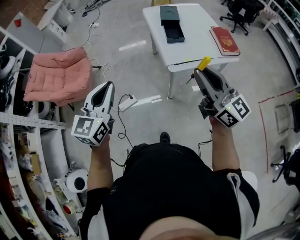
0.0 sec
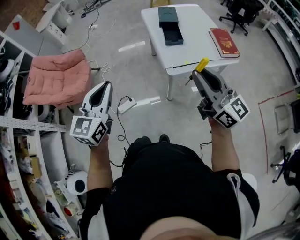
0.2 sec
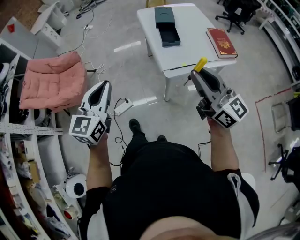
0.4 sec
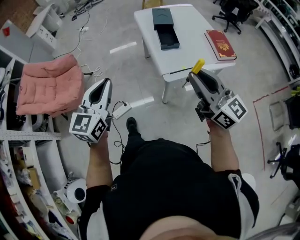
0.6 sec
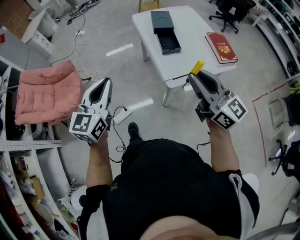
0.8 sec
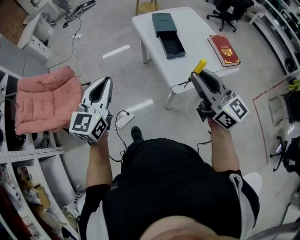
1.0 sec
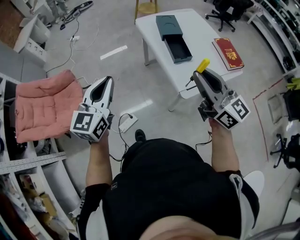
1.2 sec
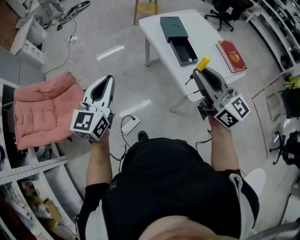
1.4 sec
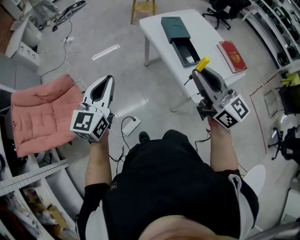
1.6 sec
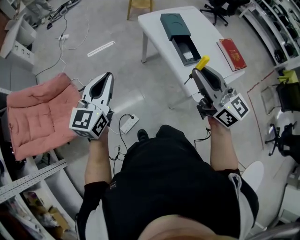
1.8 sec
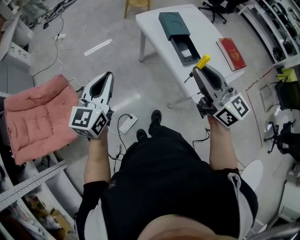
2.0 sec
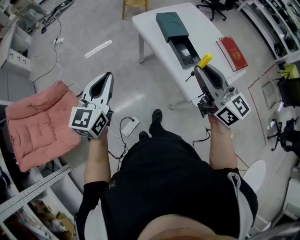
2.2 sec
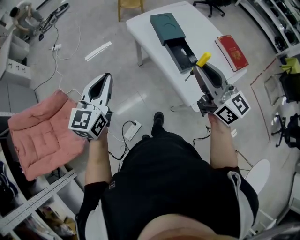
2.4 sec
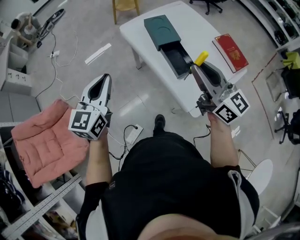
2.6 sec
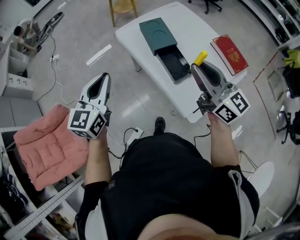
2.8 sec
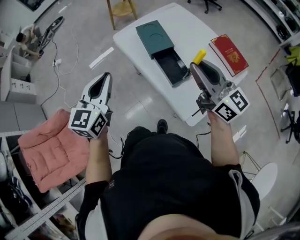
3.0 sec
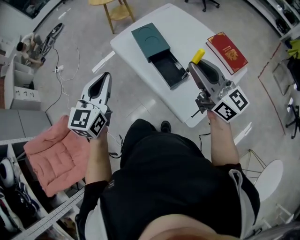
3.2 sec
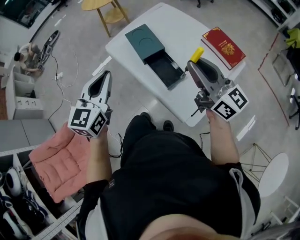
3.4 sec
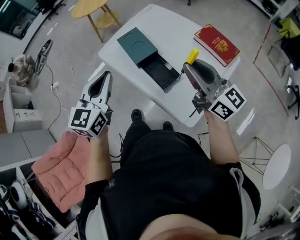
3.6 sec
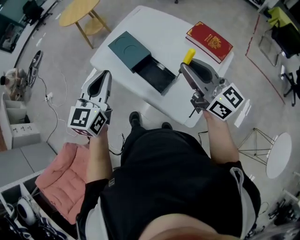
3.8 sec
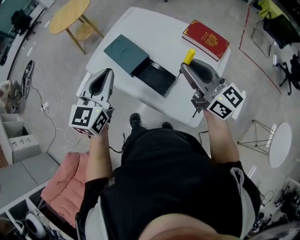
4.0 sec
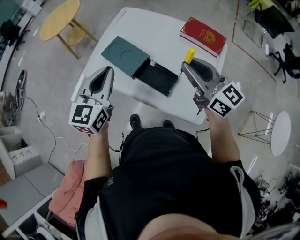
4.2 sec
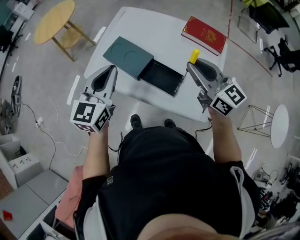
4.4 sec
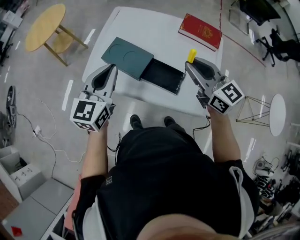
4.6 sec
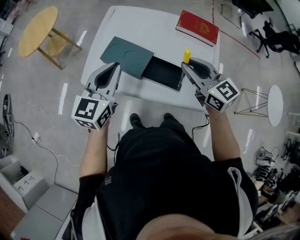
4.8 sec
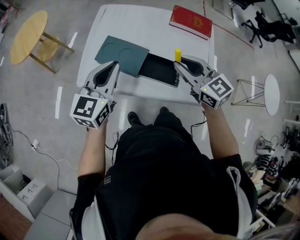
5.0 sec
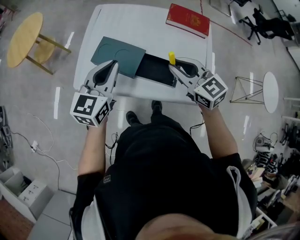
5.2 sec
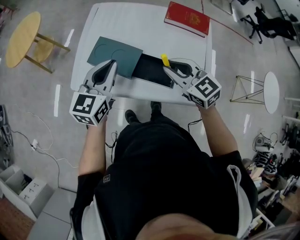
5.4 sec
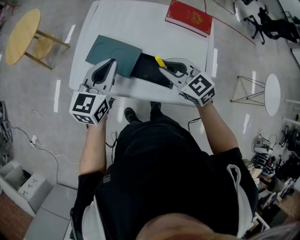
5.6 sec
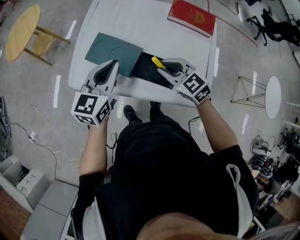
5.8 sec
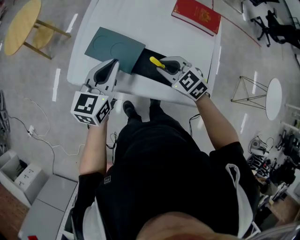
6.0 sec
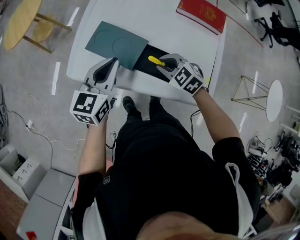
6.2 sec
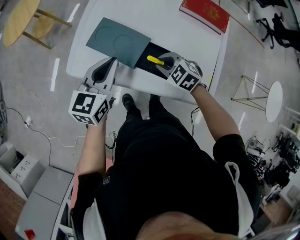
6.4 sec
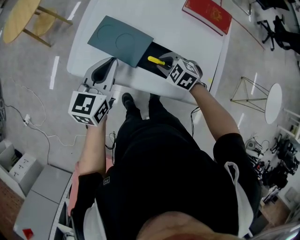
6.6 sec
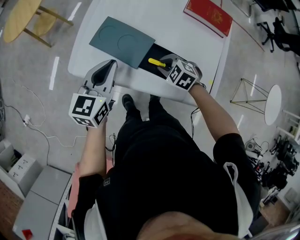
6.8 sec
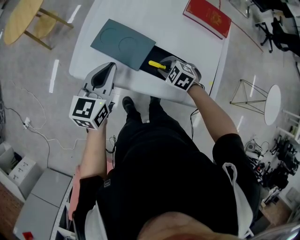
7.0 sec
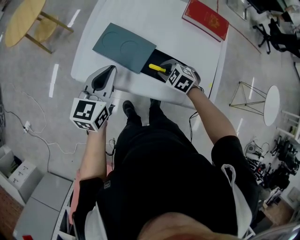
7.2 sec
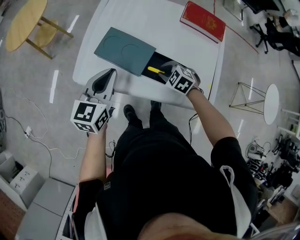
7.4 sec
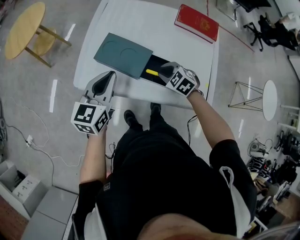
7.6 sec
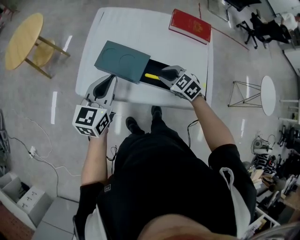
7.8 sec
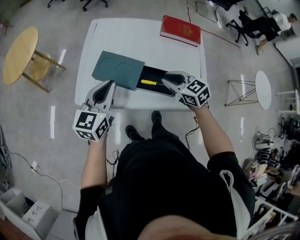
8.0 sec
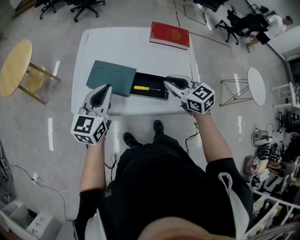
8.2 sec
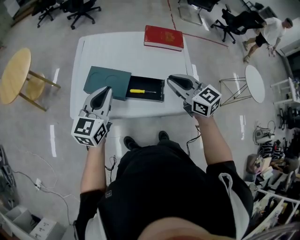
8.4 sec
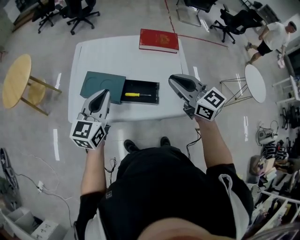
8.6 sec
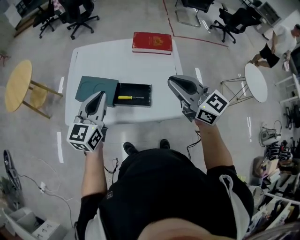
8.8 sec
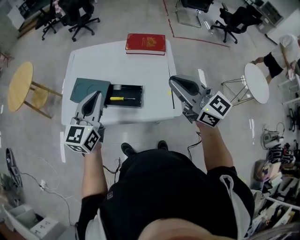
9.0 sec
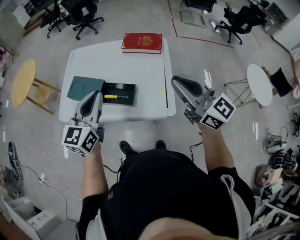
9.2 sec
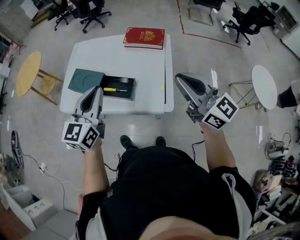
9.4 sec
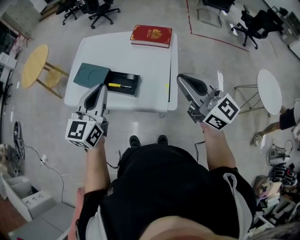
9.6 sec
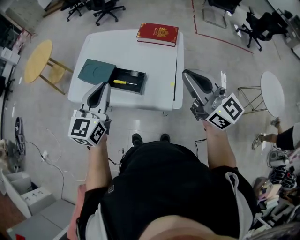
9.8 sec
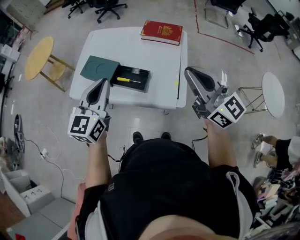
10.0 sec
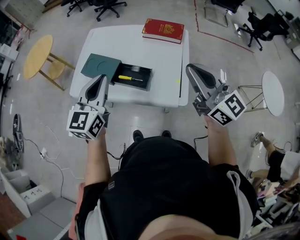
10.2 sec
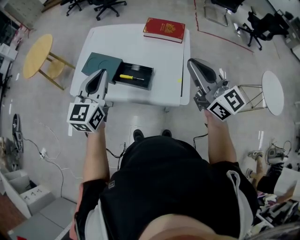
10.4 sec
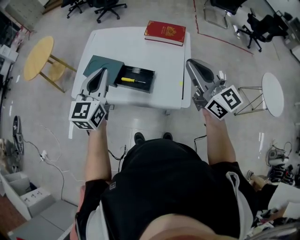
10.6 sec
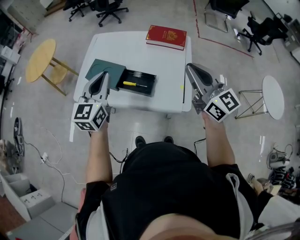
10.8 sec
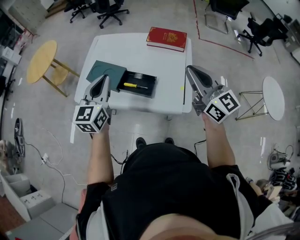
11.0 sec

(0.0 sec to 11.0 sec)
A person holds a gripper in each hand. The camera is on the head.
0.0 sec - 1.6 sec: Both grippers travel together forward and to the left, approximately 40 cm.
1.6 sec - 3.2 sec: Both grippers travel together forward and to the right, about 30 cm.
3.2 sec - 4.8 sec: The right gripper ends up about 15 cm from where it was, and changes its angle by some 40 degrees; the left gripper moves some 25 cm, and swivels about 40 degrees.
4.8 sec - 6.2 sec: The left gripper moves downward, roughly 10 cm; the right gripper is displaced downward by some 20 cm, and tips its fingers downward by some 30 degrees.
6.2 sec - 7.8 sec: The left gripper goes some 5 cm to the left. Meanwhile the right gripper travels downward and back again, about 5 cm each way.
7.8 sec - 9.4 sec: Both grippers move to the right, upward and backward, approximately 40 cm. The right gripper points its fingers some 60 degrees further upward.
9.4 sec - 11.0 sec: The right gripper moves to the left and forward, approximately 10 cm. Meanwhile the left gripper is displaced to the left by about 10 cm.

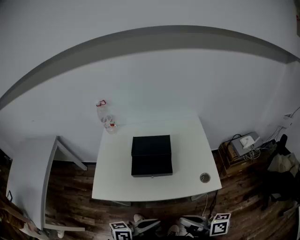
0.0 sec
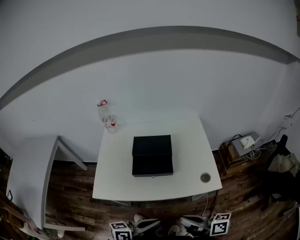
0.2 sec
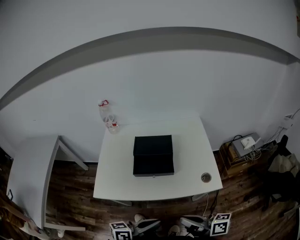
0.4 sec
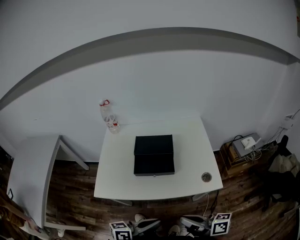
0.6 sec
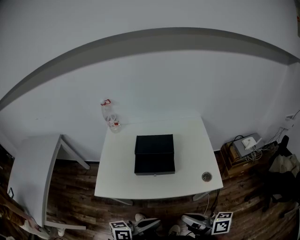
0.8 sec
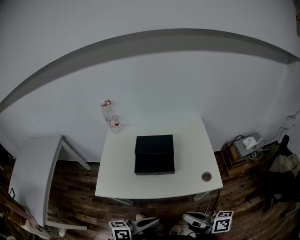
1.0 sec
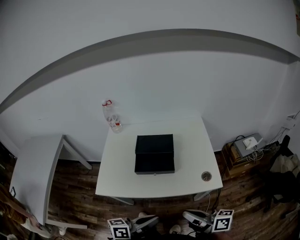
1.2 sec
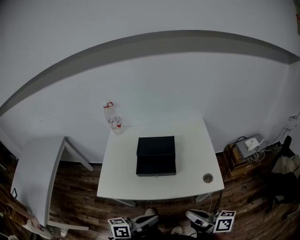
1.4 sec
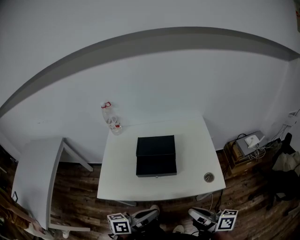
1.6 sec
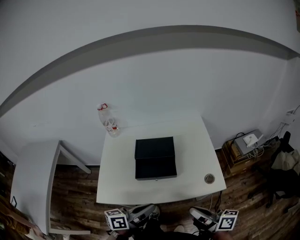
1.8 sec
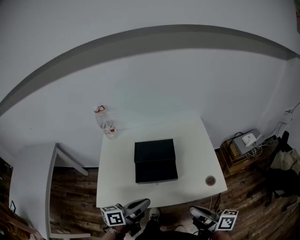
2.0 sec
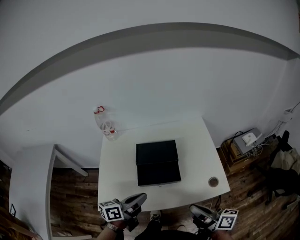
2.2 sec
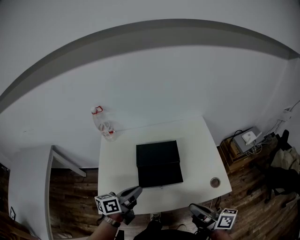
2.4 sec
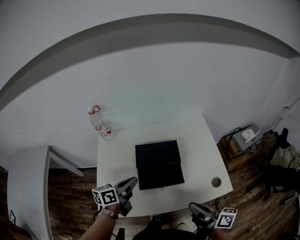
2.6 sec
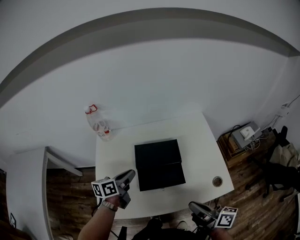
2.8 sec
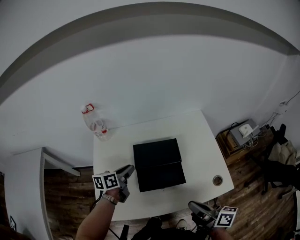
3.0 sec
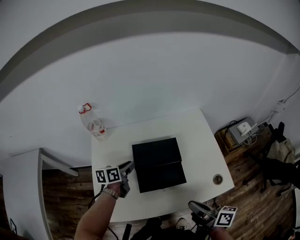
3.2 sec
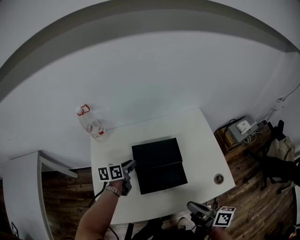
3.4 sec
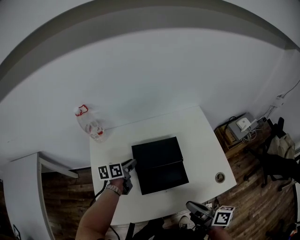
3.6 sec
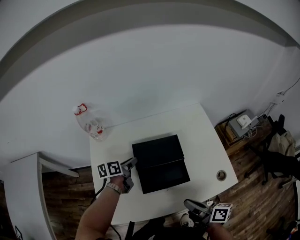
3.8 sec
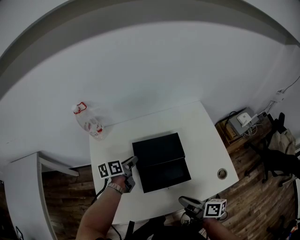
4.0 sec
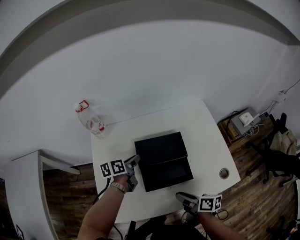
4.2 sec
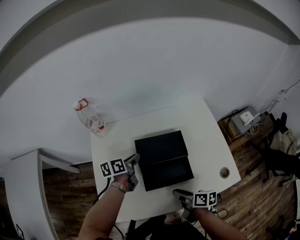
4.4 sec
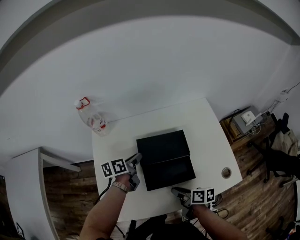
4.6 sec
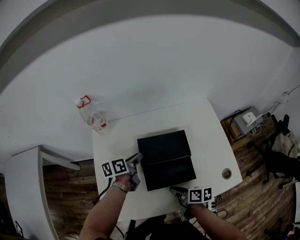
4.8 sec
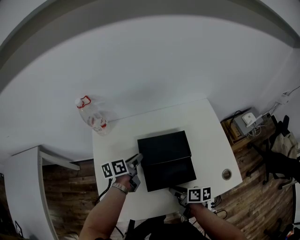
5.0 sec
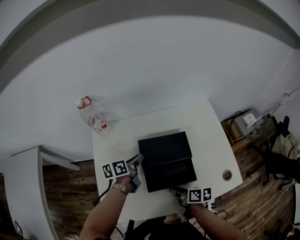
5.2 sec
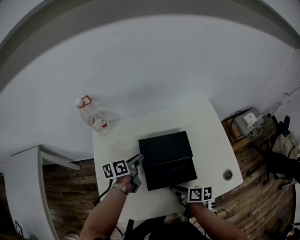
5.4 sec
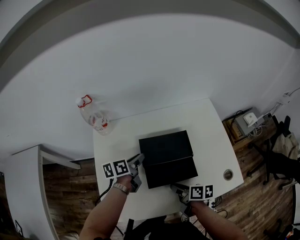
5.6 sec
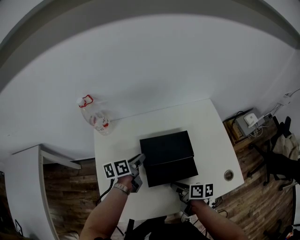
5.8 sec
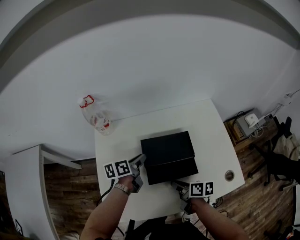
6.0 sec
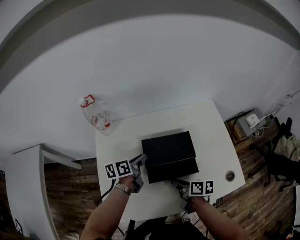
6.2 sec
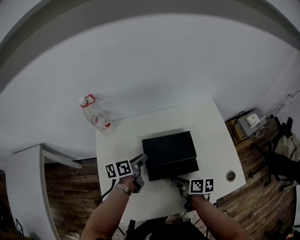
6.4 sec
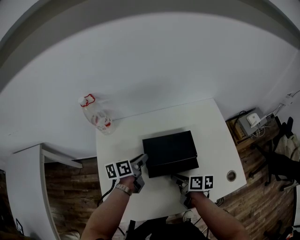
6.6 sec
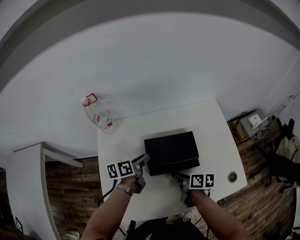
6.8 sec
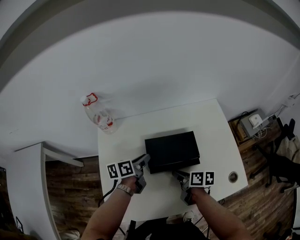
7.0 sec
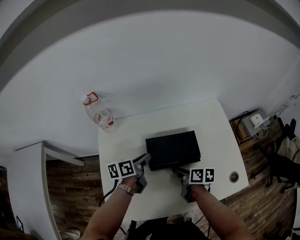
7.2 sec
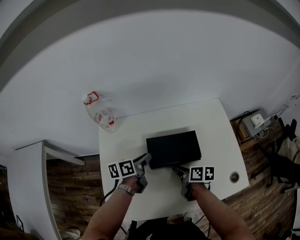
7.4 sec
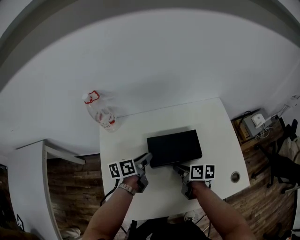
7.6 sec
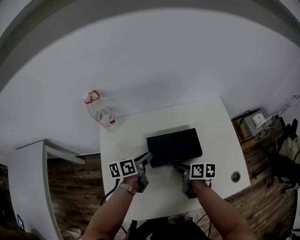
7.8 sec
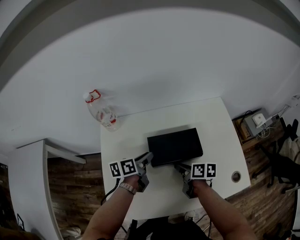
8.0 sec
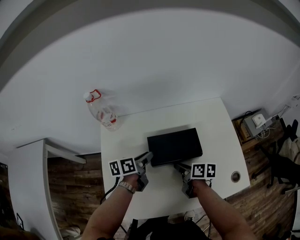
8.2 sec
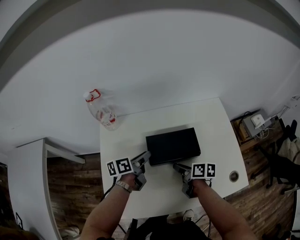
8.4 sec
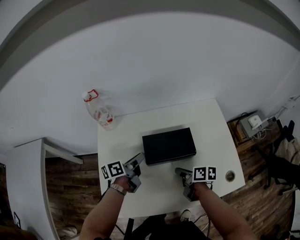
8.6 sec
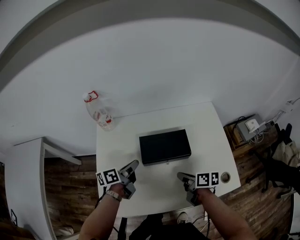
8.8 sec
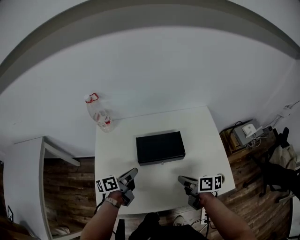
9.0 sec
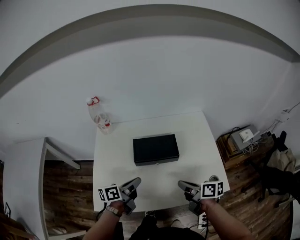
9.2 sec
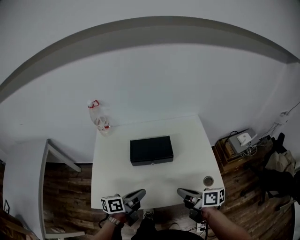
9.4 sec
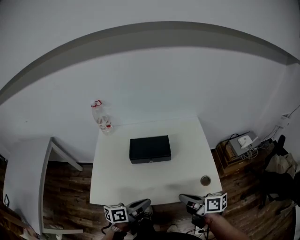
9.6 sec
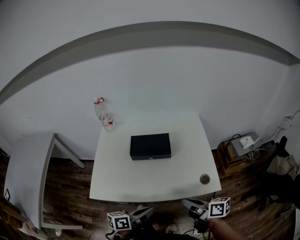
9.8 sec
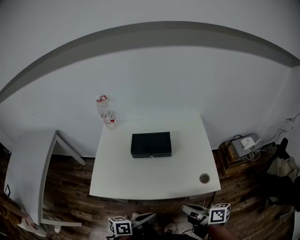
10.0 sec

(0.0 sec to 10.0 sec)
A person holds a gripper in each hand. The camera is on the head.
0.0 sec - 1.4 sec: The grippers make only small movements.
1.4 sec - 2.8 sec: The left gripper travels forward and to the left by roughly 35 cm. Meanwhile the right gripper goes approximately 15 cm forward and to the left.
2.8 sec - 4.2 sec: The right gripper is displaced downward and to the left by roughly 15 cm. Meanwhile the left gripper is displaced forward and downward by roughly 10 cm.
4.2 sec - 5.8 sec: The right gripper is displaced forward by roughly 5 cm.
5.8 sec - 7.2 sec: The right gripper is displaced forward by some 10 cm.
7.2 sec - 8.6 sec: The grippers make only small movements.
8.6 sec - 10.0 sec: The right gripper shifts roughly 30 cm backward, upward and to the right, and swivels approximately 30 degrees. The left gripper is displaced backward and to the right by about 40 cm, and closes up.

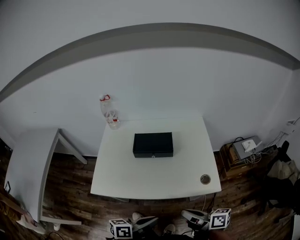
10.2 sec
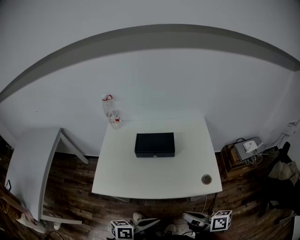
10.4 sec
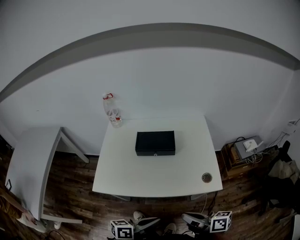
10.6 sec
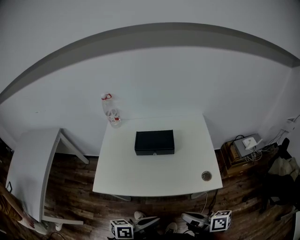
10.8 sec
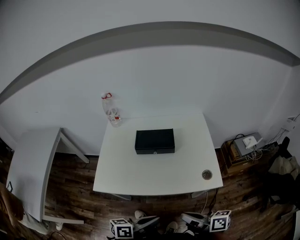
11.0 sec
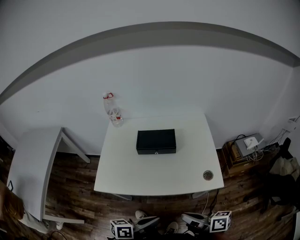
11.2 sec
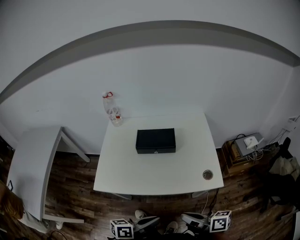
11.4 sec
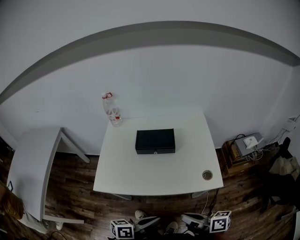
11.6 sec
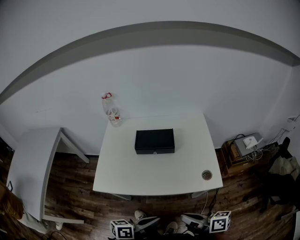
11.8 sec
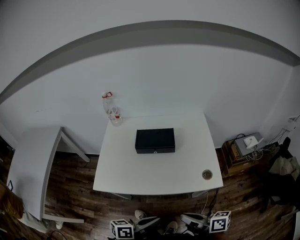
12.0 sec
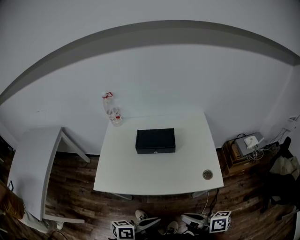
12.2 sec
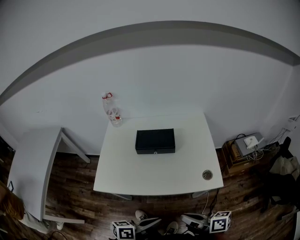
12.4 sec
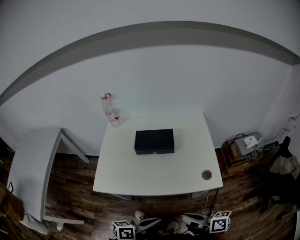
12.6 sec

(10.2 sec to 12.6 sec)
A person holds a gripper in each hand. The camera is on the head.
10.2 sec - 11.4 sec: There are only small adjustments of the grippers.
11.4 sec - 12.6 sec: Neither gripper changes place.
